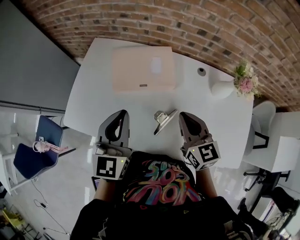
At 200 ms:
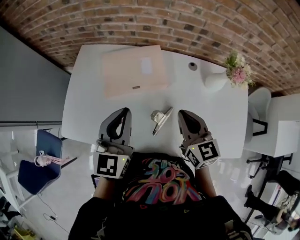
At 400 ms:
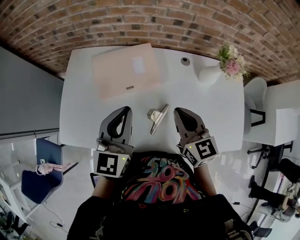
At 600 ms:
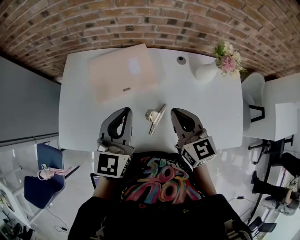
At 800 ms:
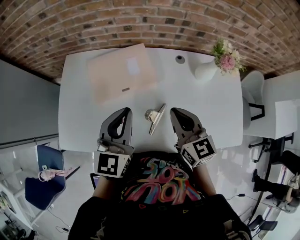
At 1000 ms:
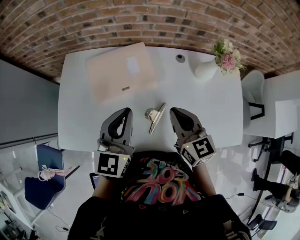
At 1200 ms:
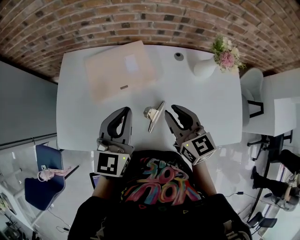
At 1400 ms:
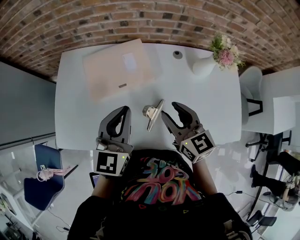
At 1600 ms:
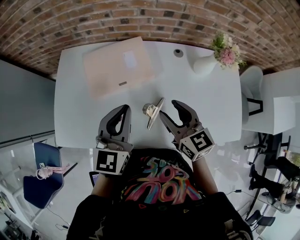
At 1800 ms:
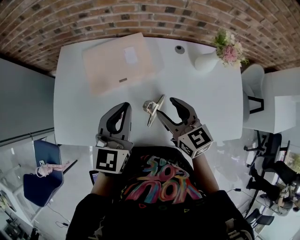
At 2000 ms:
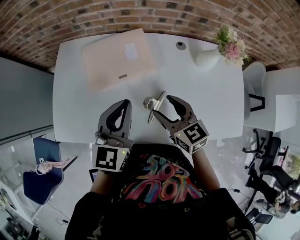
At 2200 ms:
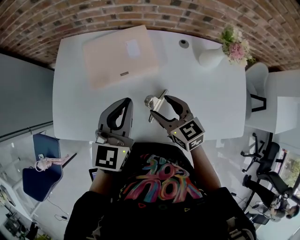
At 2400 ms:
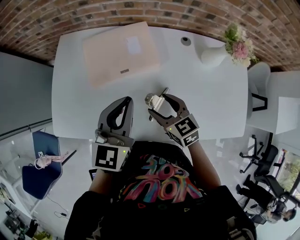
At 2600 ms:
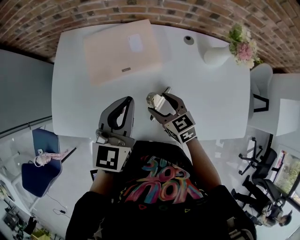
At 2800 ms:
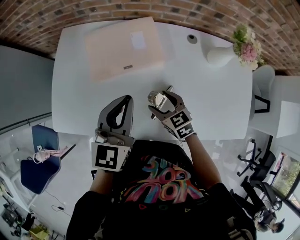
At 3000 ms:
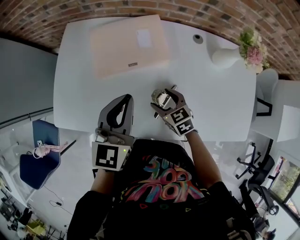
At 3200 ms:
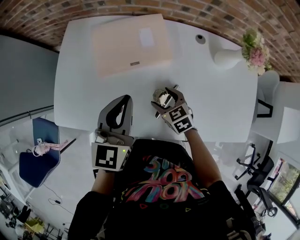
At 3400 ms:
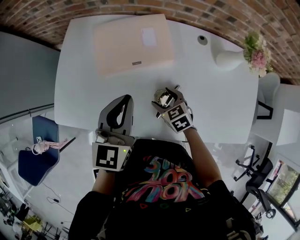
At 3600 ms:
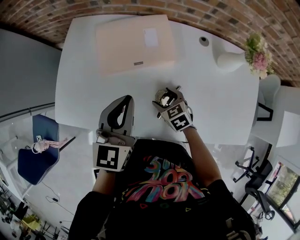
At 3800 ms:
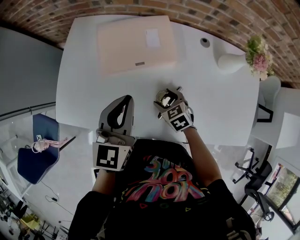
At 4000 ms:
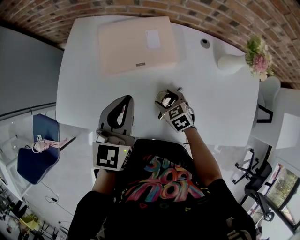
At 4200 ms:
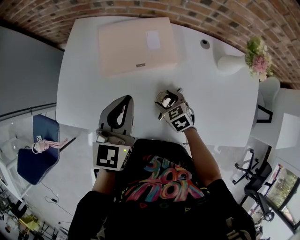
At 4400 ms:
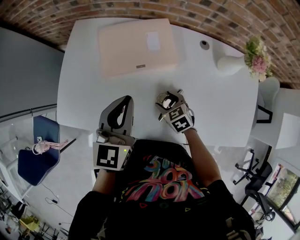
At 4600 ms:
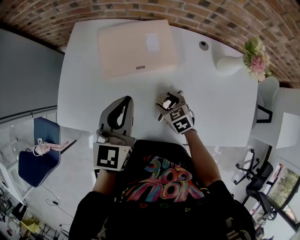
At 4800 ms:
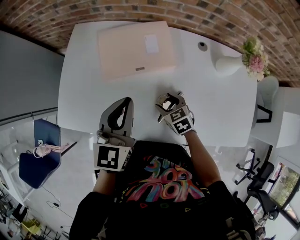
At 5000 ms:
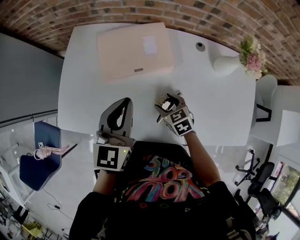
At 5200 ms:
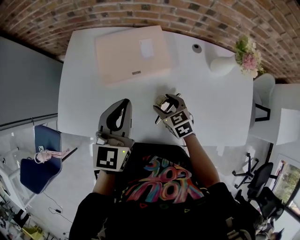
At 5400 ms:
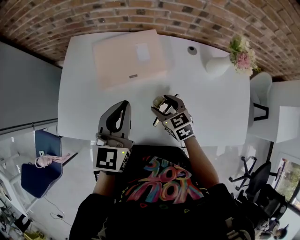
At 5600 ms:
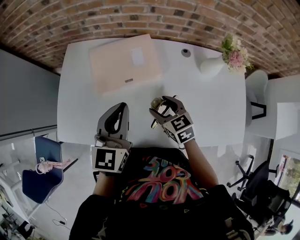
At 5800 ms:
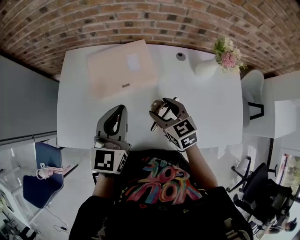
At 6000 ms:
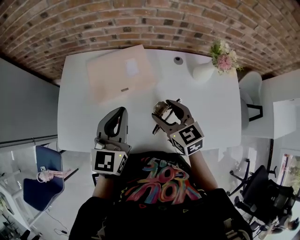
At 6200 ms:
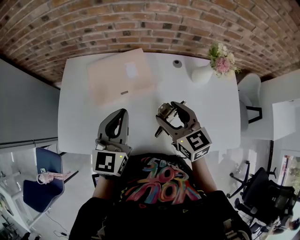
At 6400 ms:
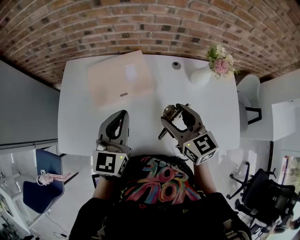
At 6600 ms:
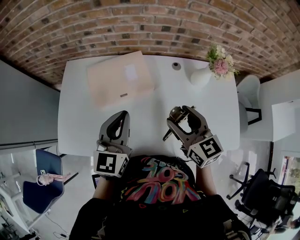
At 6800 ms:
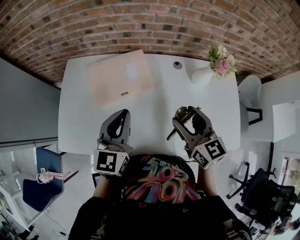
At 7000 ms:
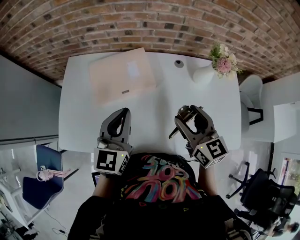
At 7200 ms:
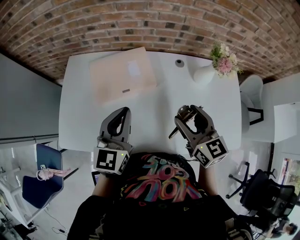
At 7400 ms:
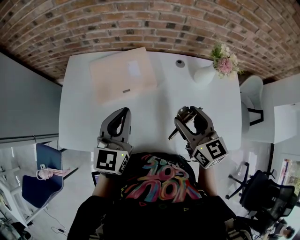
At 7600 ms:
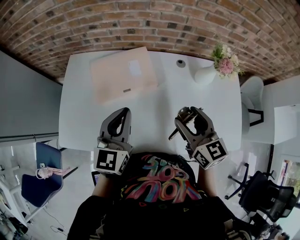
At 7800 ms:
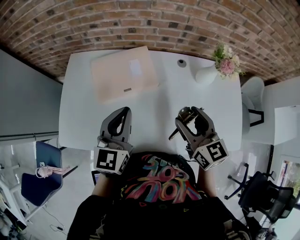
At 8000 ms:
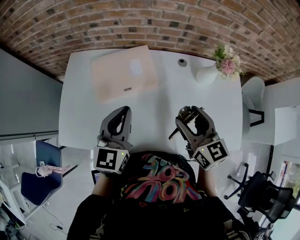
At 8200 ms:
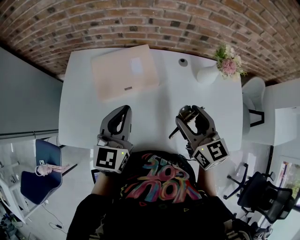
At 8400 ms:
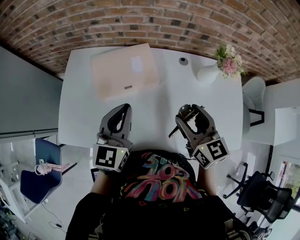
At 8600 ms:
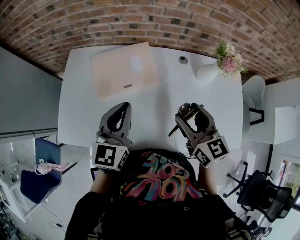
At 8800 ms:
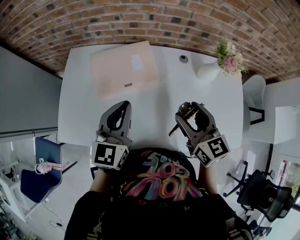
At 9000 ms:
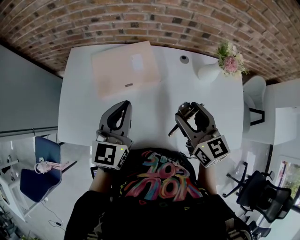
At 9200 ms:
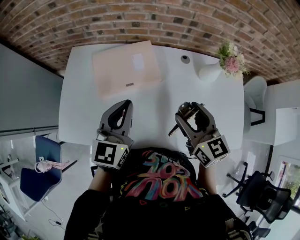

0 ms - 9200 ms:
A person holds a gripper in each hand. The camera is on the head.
0 ms - 1600 ms: The right gripper opens its fingers. Meanwhile the left gripper travels to the right by some 5 cm.
1600 ms - 3000 ms: The right gripper travels downward by about 20 cm, and swivels roughly 30 degrees.
3000 ms - 4600 ms: The grippers move only a little.
4600 ms - 6200 ms: The right gripper heads upward, covering approximately 25 cm, and tilts its fingers approximately 30 degrees upward. Meanwhile the left gripper shifts approximately 5 cm upward.
6200 ms - 7600 ms: The right gripper is displaced to the right by about 5 cm.
7600 ms - 9200 ms: The grippers move only a little.

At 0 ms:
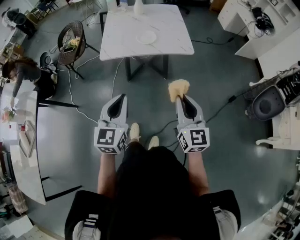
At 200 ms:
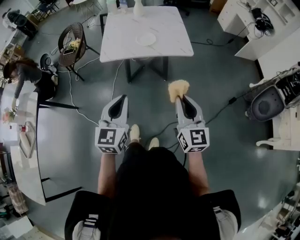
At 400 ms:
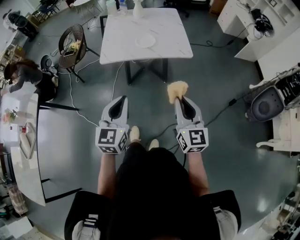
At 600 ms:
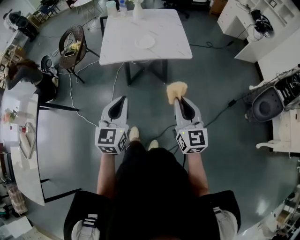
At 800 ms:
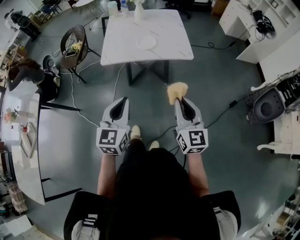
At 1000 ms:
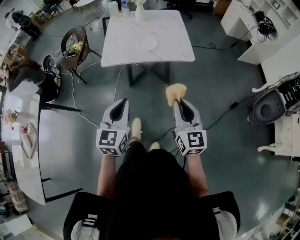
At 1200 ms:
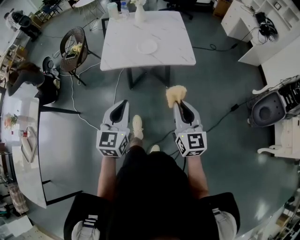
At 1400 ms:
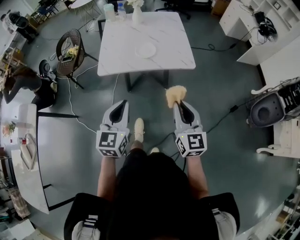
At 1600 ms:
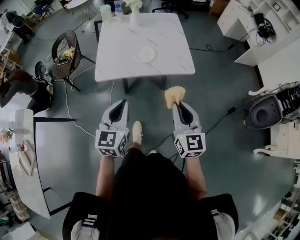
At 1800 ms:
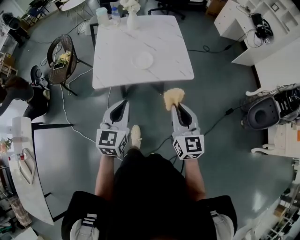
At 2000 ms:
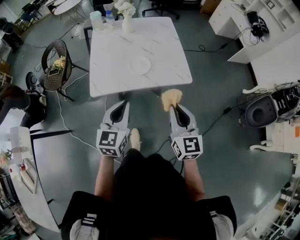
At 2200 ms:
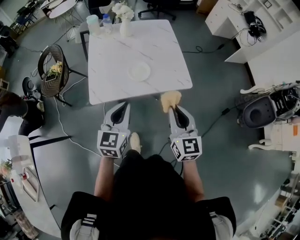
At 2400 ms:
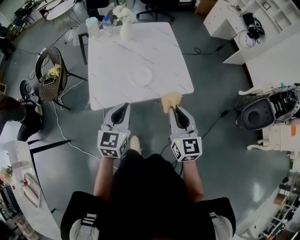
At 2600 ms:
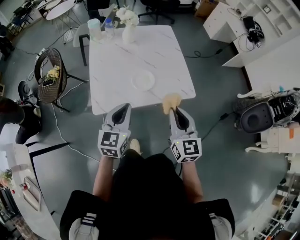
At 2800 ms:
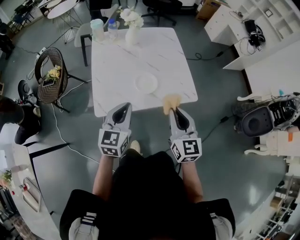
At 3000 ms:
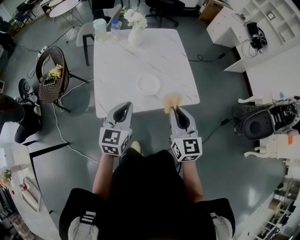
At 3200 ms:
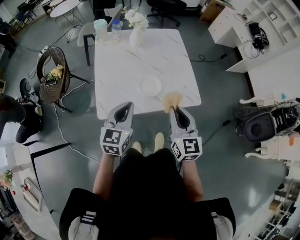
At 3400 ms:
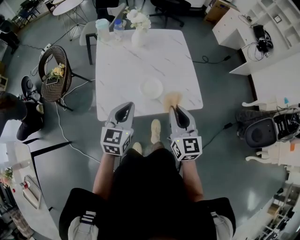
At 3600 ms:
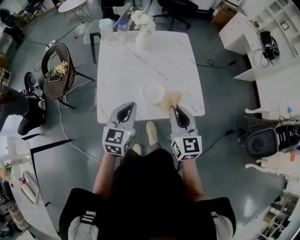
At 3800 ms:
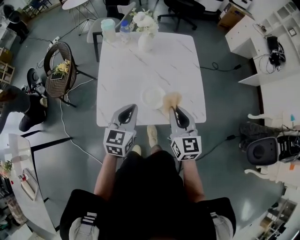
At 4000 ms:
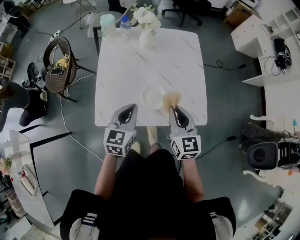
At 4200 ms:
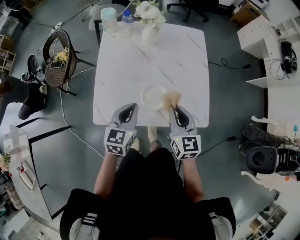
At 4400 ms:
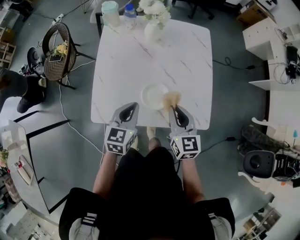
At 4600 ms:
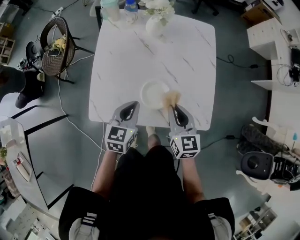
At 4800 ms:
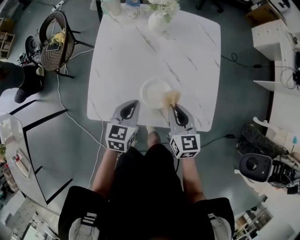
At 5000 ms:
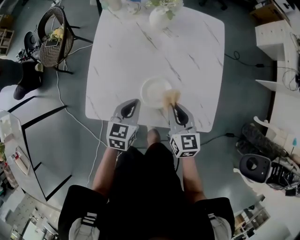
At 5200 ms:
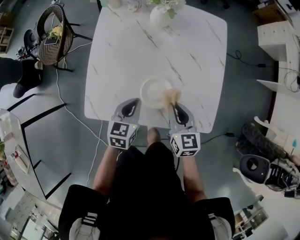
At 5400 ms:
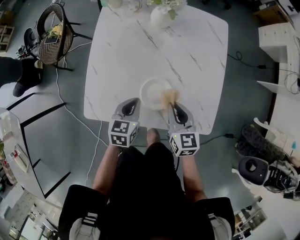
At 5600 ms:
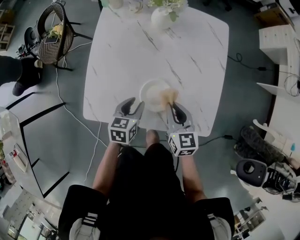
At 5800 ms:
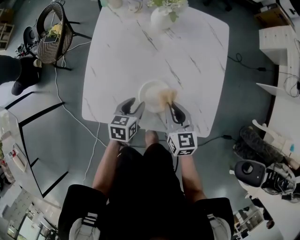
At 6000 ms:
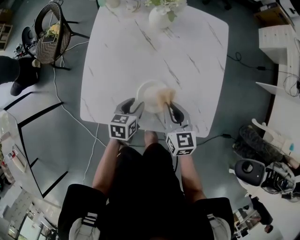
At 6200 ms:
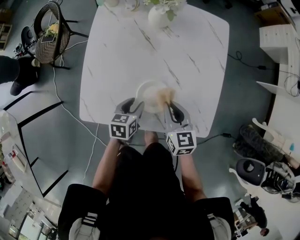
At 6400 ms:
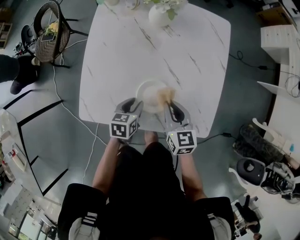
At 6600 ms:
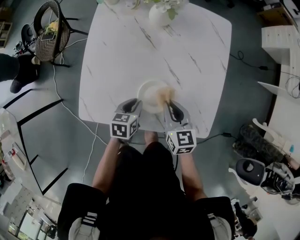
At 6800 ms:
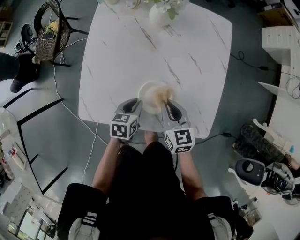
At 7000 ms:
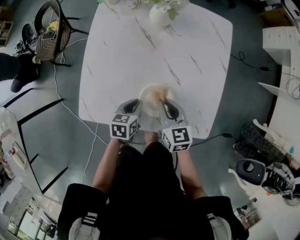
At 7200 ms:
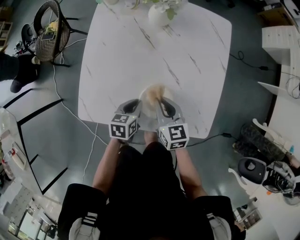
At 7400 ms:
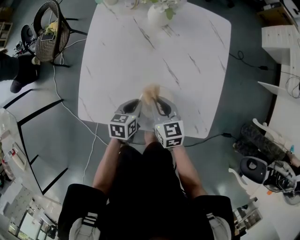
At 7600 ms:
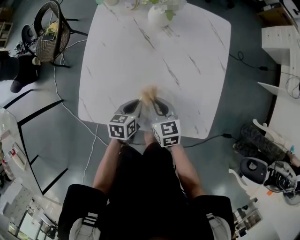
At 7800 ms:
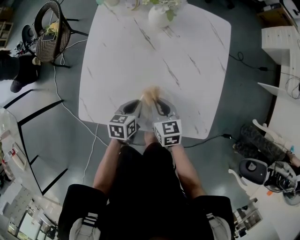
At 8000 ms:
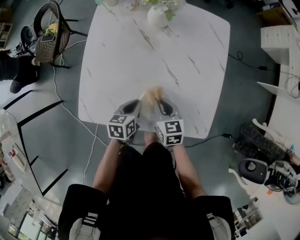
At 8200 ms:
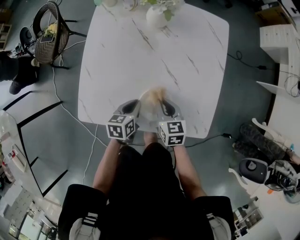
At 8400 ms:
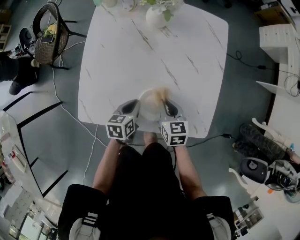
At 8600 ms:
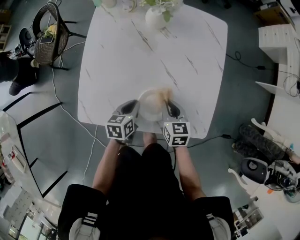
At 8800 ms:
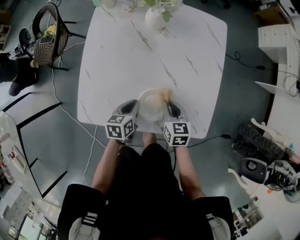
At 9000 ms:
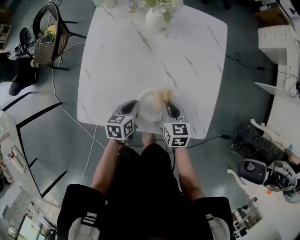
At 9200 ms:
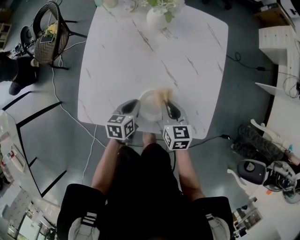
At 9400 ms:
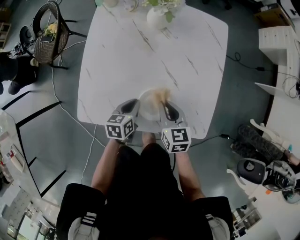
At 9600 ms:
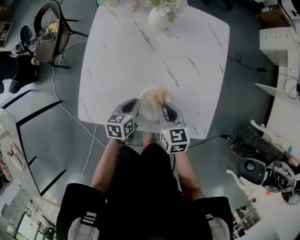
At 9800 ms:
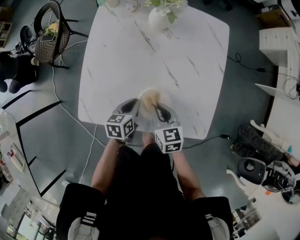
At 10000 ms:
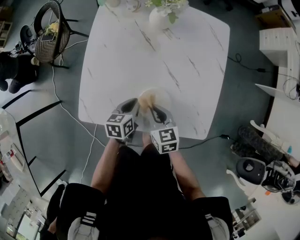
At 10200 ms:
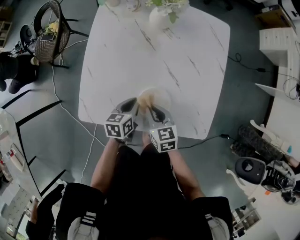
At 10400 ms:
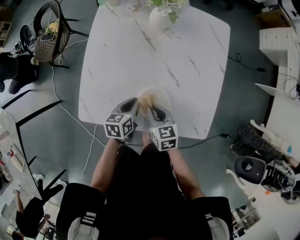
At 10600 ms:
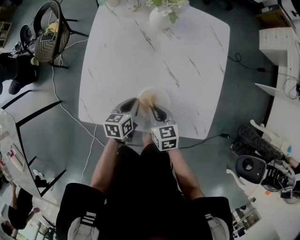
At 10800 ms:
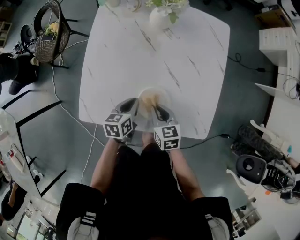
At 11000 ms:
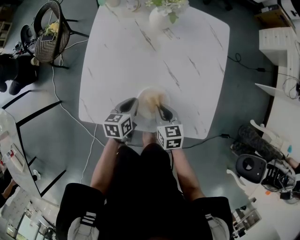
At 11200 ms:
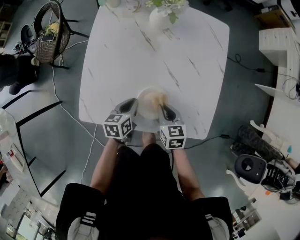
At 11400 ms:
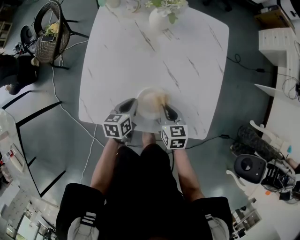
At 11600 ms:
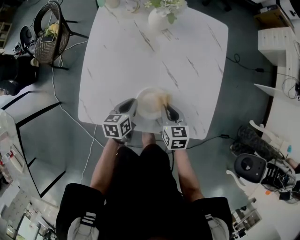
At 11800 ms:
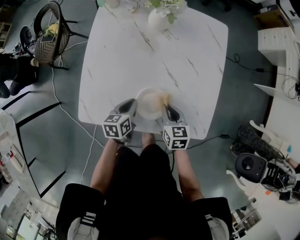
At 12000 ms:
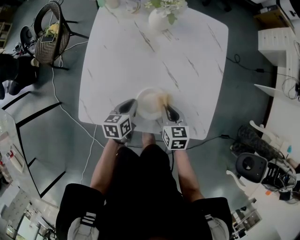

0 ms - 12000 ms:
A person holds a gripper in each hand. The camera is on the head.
0 ms - 1600 ms: The grippers both shift forward by some 15 cm.
1600 ms - 3000 ms: Both grippers travel together forward and to the left, roughly 25 cm.
3000 ms - 4400 ms: Both grippers travel together forward and downward, some 20 cm.
4400 ms - 6000 ms: The left gripper is displaced downward by some 15 cm, turns by roughly 30 degrees, and opens, while the right gripper goes approximately 10 cm downward and forward.
6000 ms - 7600 ms: The left gripper closes its fingers. Meanwhile the right gripper goes about 5 cm downward.
7600 ms - 9000 ms: The right gripper heads to the right, covering about 5 cm.
9000 ms - 10400 ms: The right gripper moves to the left, approximately 10 cm.
10400 ms - 12000 ms: The right gripper travels to the right by about 5 cm.

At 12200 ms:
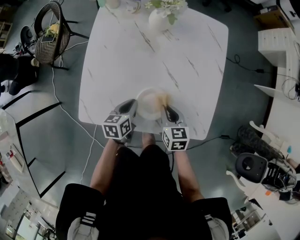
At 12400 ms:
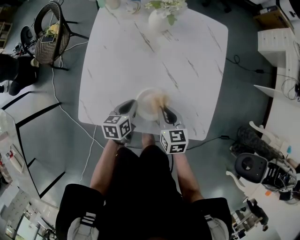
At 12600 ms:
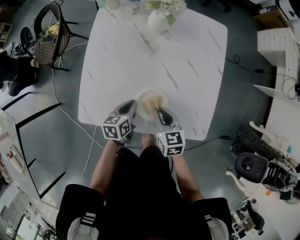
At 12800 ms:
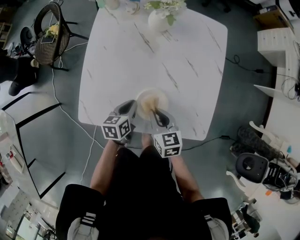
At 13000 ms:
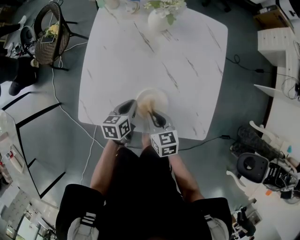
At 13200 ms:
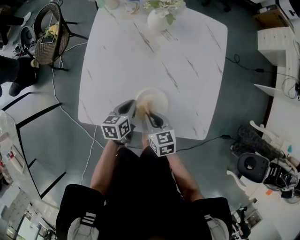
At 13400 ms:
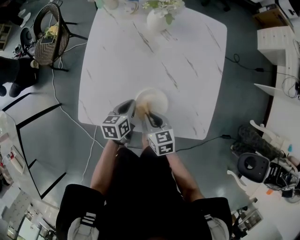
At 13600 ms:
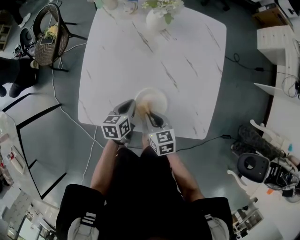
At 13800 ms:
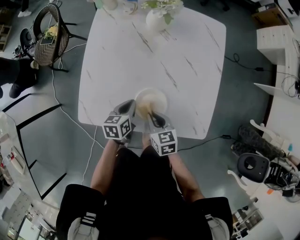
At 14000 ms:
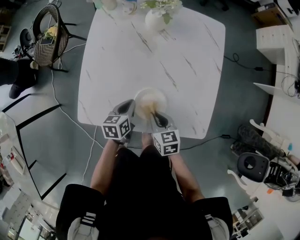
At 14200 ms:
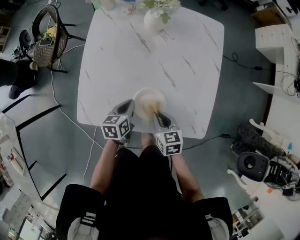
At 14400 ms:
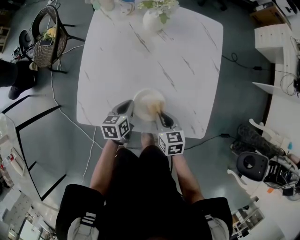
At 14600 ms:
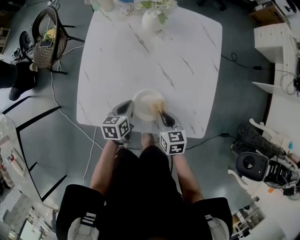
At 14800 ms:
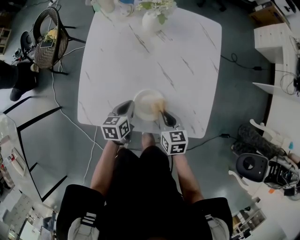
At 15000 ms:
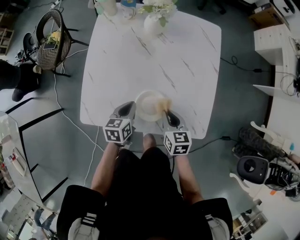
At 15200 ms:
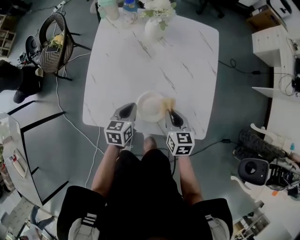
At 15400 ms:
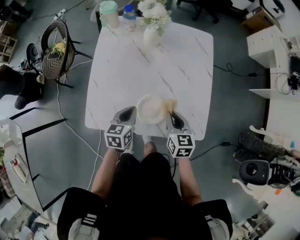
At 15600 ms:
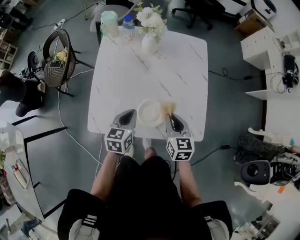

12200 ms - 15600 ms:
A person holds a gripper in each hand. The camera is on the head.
12200 ms - 13800 ms: The right gripper travels to the left by some 5 cm.
13800 ms - 15600 ms: The left gripper shifts some 15 cm upward, and turns by about 20 degrees. The right gripper is displaced upward and to the right by about 15 cm, and turns by roughly 20 degrees.
